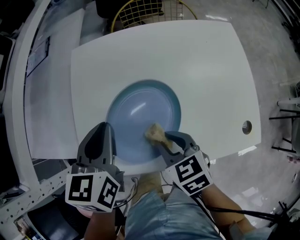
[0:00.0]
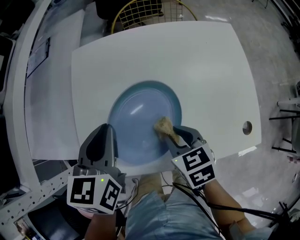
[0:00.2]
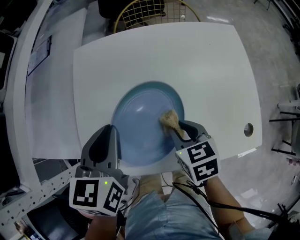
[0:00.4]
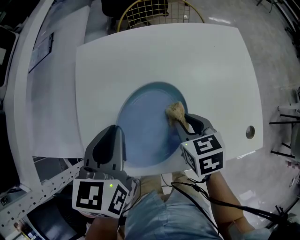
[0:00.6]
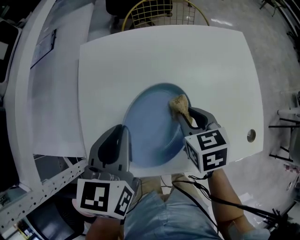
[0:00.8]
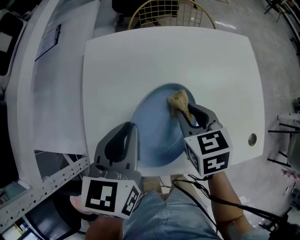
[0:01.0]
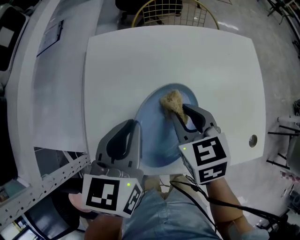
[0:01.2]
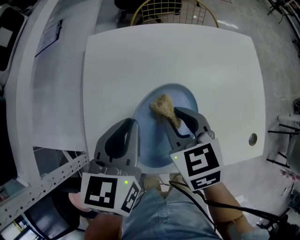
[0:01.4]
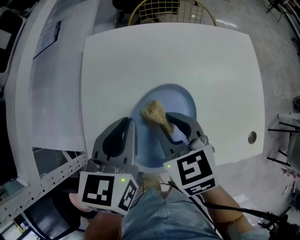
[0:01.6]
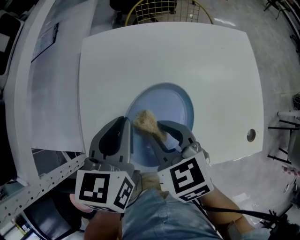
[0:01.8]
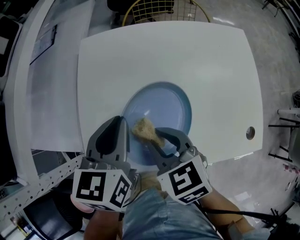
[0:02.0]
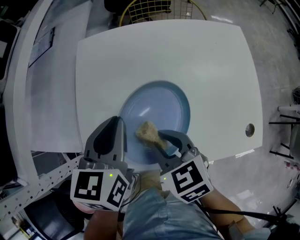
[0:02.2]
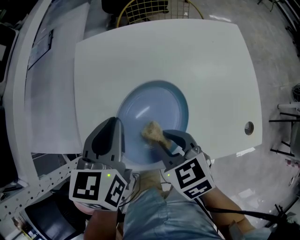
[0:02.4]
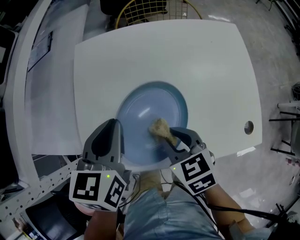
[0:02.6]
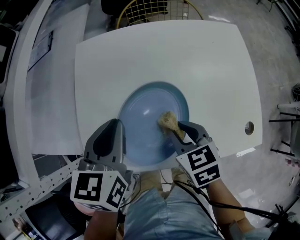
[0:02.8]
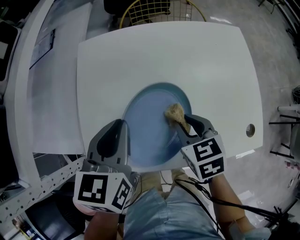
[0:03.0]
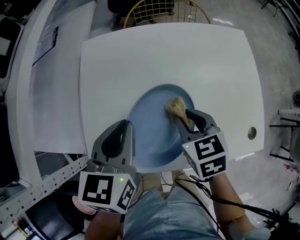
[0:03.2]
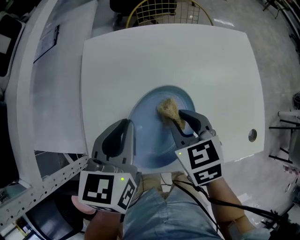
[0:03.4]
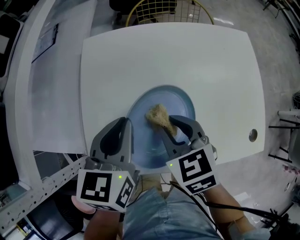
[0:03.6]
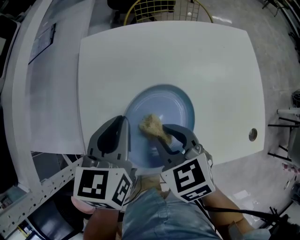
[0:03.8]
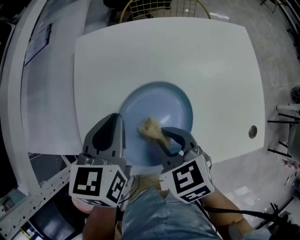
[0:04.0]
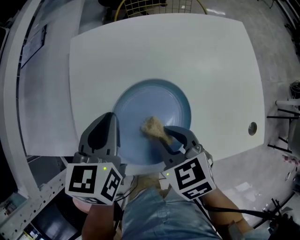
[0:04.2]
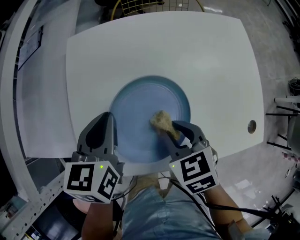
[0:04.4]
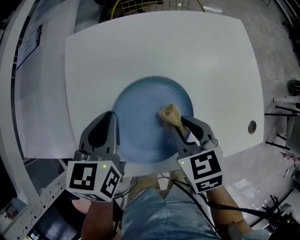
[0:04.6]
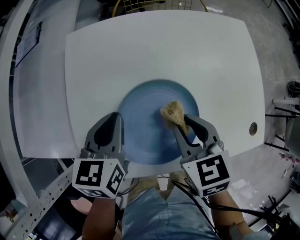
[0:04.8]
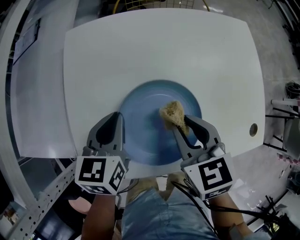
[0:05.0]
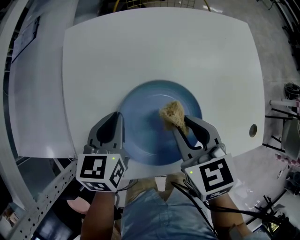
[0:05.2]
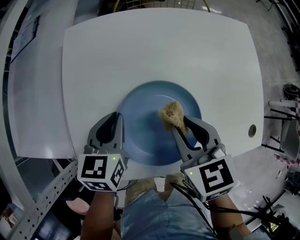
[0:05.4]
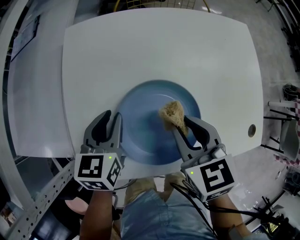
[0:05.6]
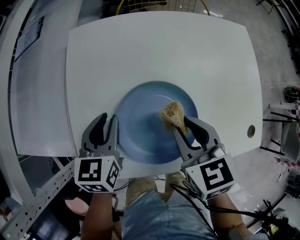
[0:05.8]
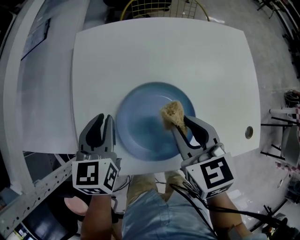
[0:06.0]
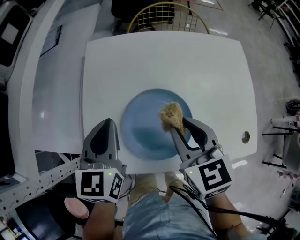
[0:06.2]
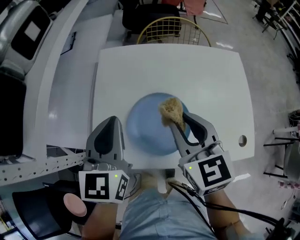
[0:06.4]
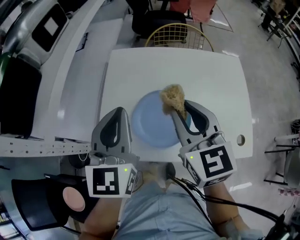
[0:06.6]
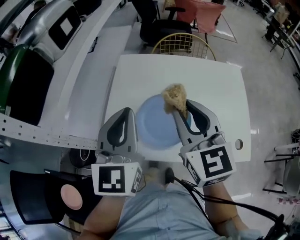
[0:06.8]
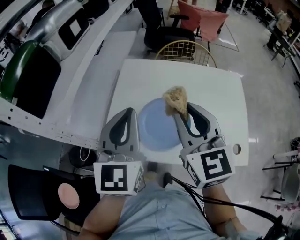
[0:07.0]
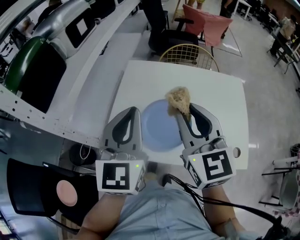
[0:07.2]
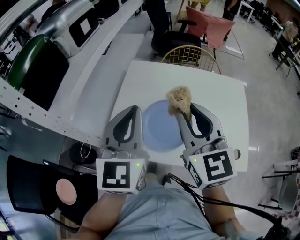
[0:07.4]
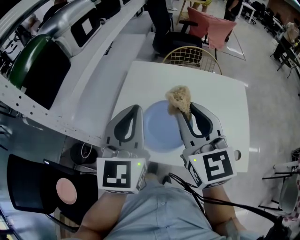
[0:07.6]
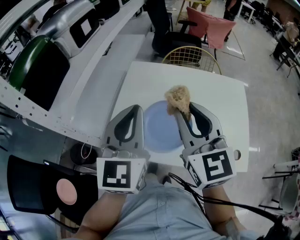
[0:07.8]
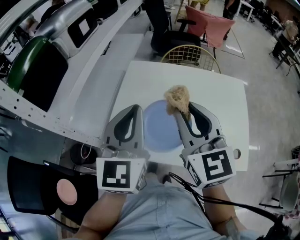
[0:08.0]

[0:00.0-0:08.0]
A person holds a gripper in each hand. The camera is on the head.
0:00.0 to 0:01.6: The right gripper travels forward and upward by some 10 cm.
0:01.6 to 0:03.2: The right gripper is displaced to the right by about 5 cm.
0:03.2 to 0:04.8: The left gripper travels downward by some 10 cm. Meanwhile the right gripper travels to the left and back again, some 10 cm each way.
0:04.8 to 0:06.4: The right gripper is displaced upward by roughly 15 cm, and changes its angle by roughly 20 degrees. The left gripper is displaced upward and backward by approximately 15 cm, and swivels roughly 30 degrees.
0:06.4 to 0:08.0: The grippers both shift upward and backward by roughly 15 cm. The right gripper rotates roughly 20 degrees.

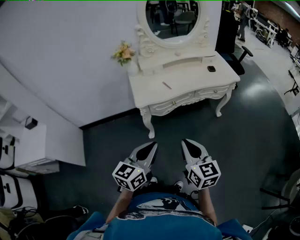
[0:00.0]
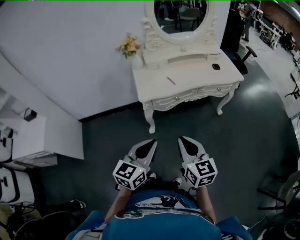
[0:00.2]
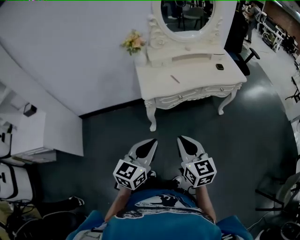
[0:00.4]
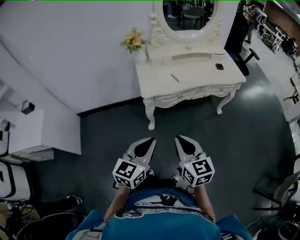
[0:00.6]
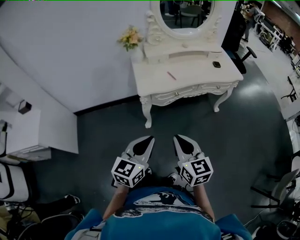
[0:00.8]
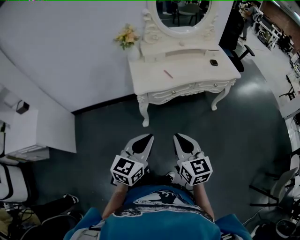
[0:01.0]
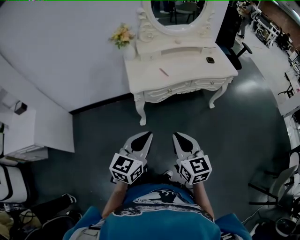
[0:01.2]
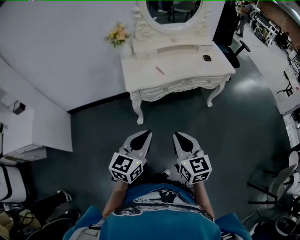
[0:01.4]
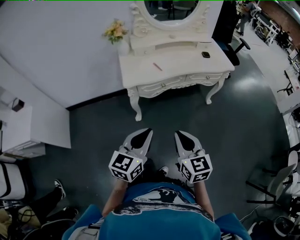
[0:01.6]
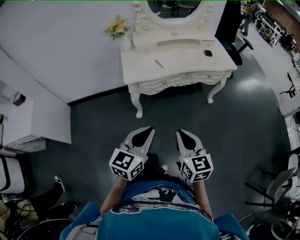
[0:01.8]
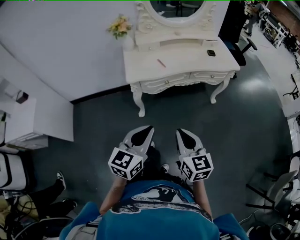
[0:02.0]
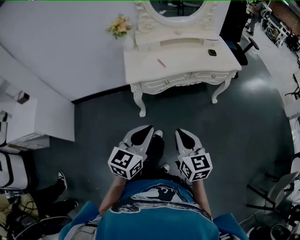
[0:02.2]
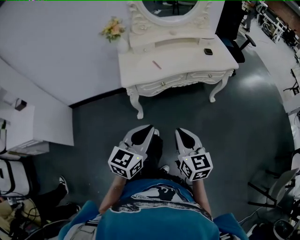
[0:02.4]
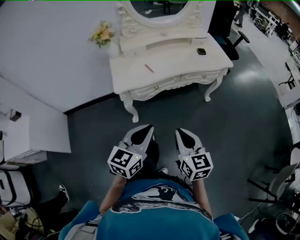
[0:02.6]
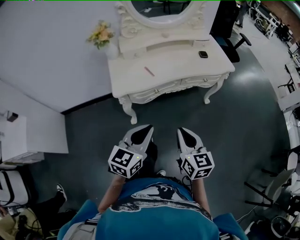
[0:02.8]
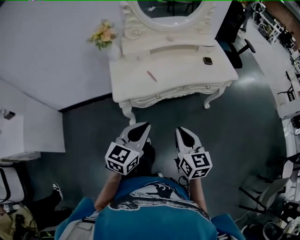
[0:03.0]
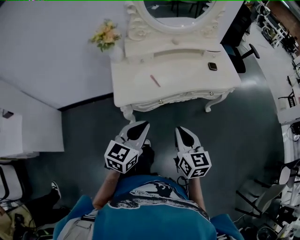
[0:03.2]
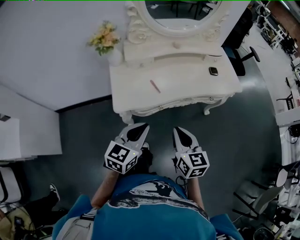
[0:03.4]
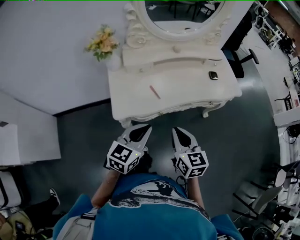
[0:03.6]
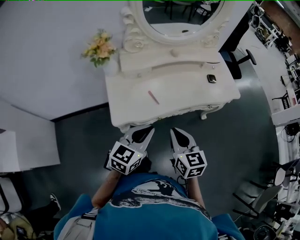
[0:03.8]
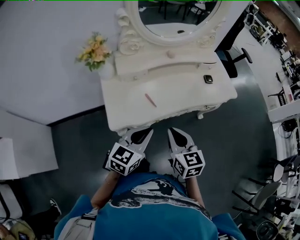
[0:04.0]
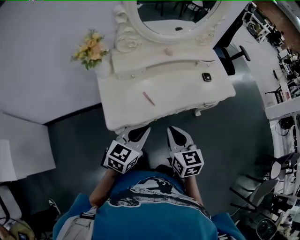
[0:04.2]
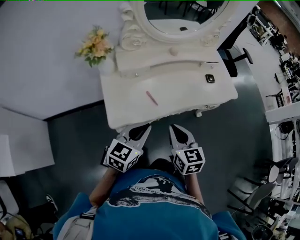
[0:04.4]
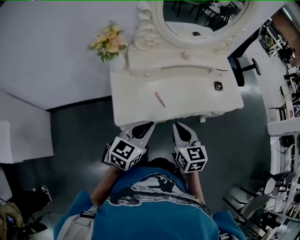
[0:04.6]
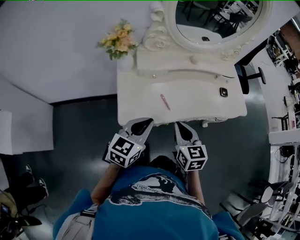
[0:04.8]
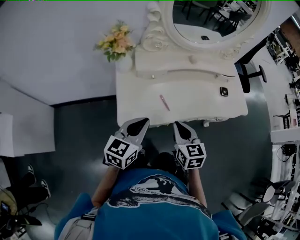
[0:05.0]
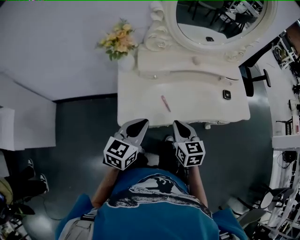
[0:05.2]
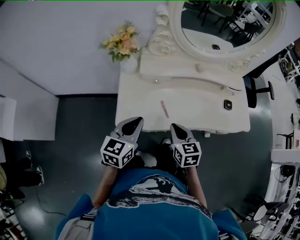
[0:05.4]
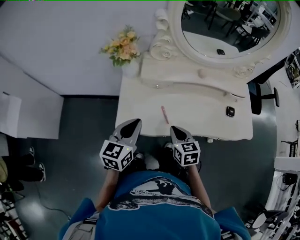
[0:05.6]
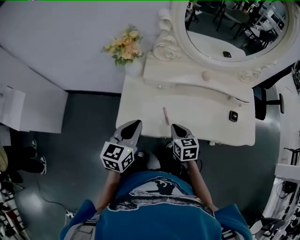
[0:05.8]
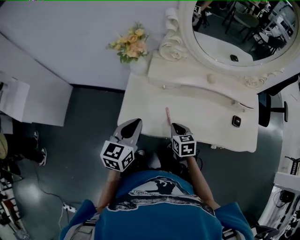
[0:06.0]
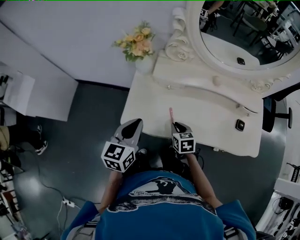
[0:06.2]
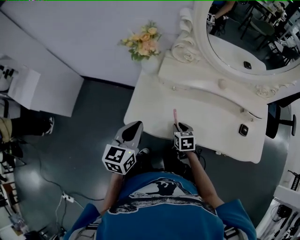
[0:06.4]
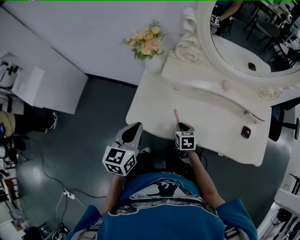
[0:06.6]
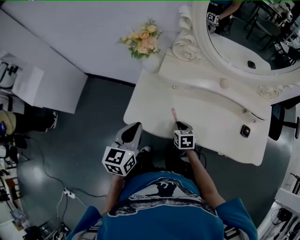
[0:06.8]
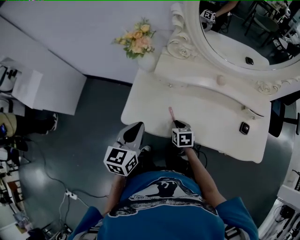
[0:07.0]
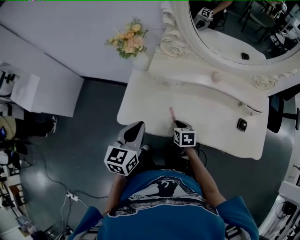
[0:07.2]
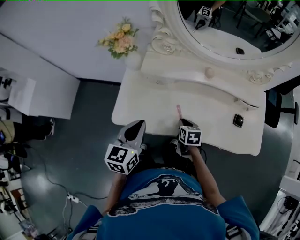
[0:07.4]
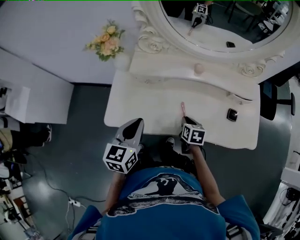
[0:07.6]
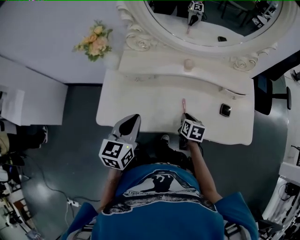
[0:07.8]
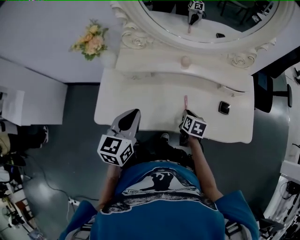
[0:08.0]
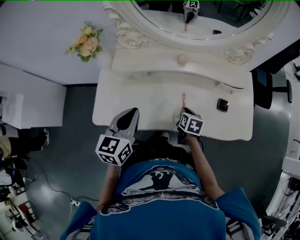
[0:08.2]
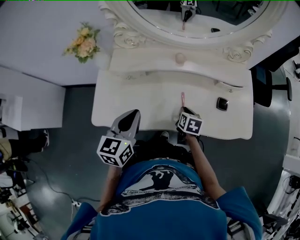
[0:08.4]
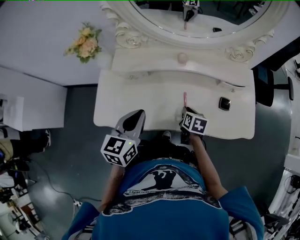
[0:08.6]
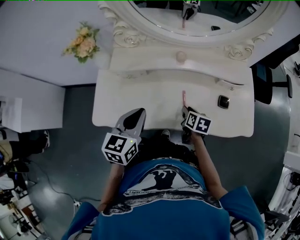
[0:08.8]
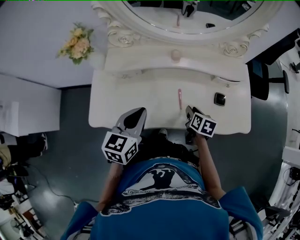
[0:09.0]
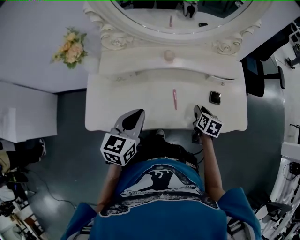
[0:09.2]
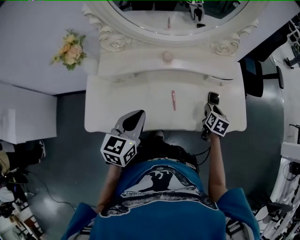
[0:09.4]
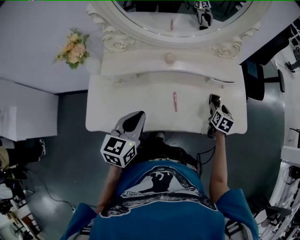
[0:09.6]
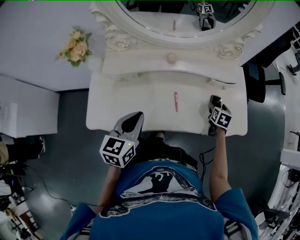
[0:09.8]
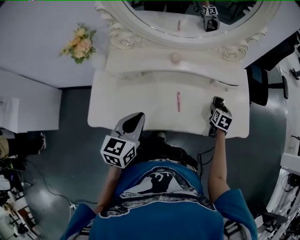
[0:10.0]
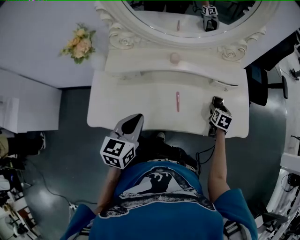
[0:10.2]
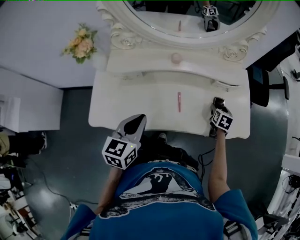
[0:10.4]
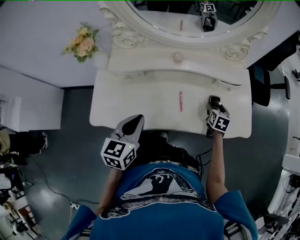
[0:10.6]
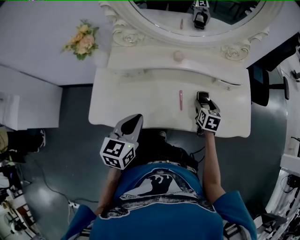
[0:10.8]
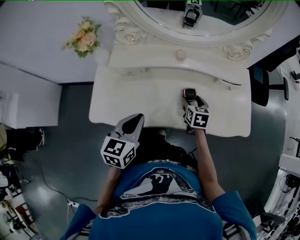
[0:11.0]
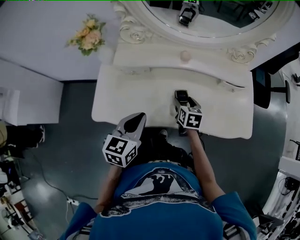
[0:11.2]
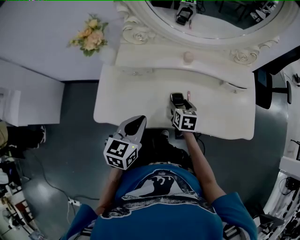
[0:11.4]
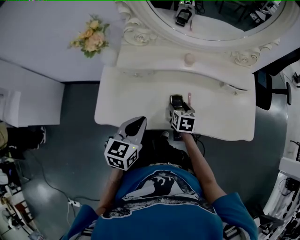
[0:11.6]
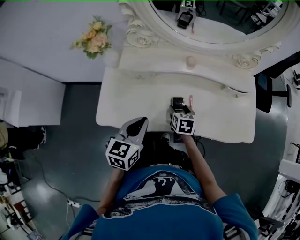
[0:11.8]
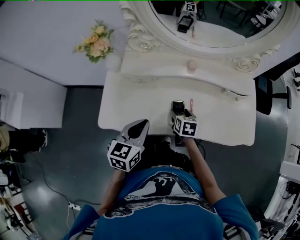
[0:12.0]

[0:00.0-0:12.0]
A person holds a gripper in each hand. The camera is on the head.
0:00.0 to 0:01.6: The right gripper moves roughly 10 cm to the left and comes back, while the left gripper goes to the left and returns, some 5 cm each way.
0:01.6 to 0:03.0: Both grippers move forward, roughly 15 cm.
0:03.0 to 0:04.4: The right gripper goes about 20 cm forward and to the left, while the left gripper heads forward, covering approximately 15 cm.
0:04.4 to 0:06.0: The right gripper changes place by approximately 20 cm, and turns by about 30 degrees; the left gripper changes place by approximately 10 cm, and changes its angle by roughly 40 degrees.
0:06.0 to 0:07.6: The right gripper moves to the right, approximately 15 cm. Meanwhile the left gripper moves to the right, some 10 cm.
0:07.6 to 0:09.0: Both grippers move to the right, some 10 cm.
0:09.0 to 0:10.4: The right gripper shifts approximately 20 cm to the right and forward, changes its angle by about 20 degrees, and opens up.
0:10.4 to 0:12.0: The left gripper moves to the left, approximately 5 cm; the right gripper goes some 30 cm to the left, and rotates roughly 20 degrees.

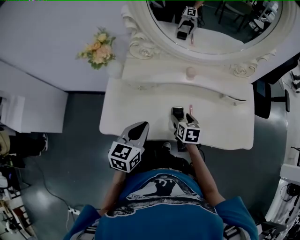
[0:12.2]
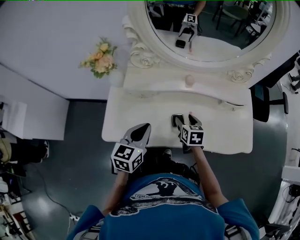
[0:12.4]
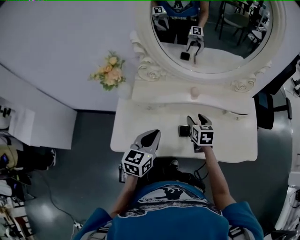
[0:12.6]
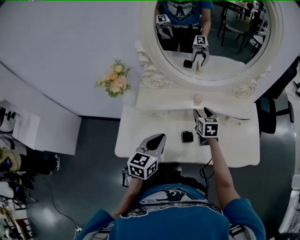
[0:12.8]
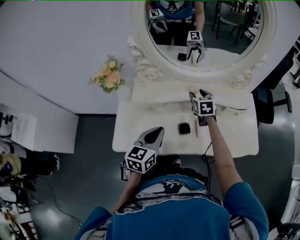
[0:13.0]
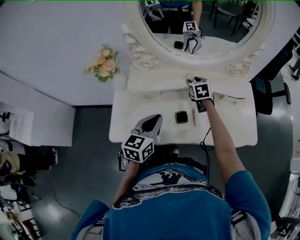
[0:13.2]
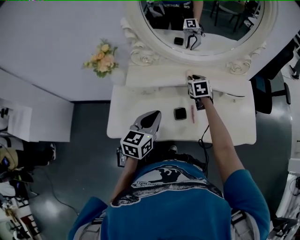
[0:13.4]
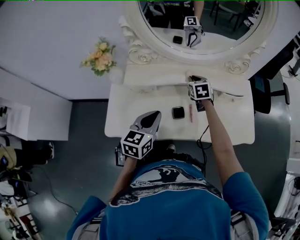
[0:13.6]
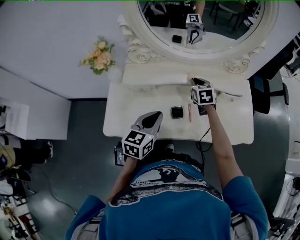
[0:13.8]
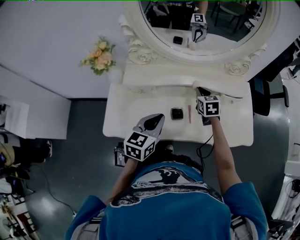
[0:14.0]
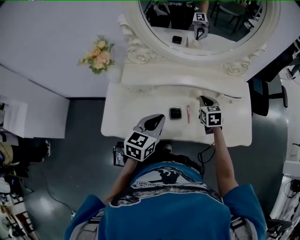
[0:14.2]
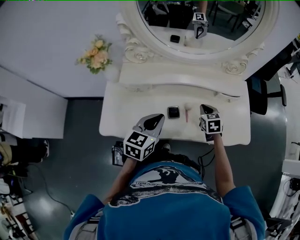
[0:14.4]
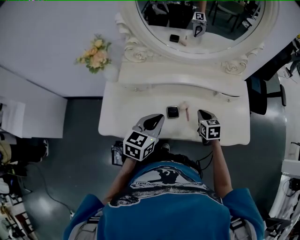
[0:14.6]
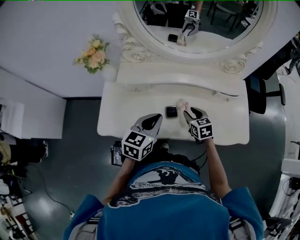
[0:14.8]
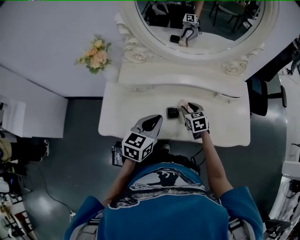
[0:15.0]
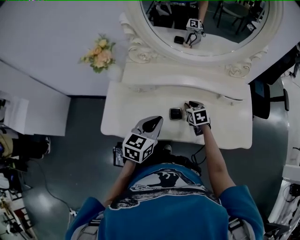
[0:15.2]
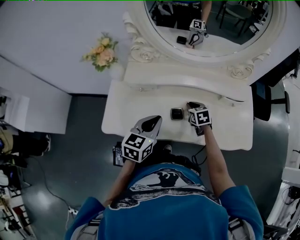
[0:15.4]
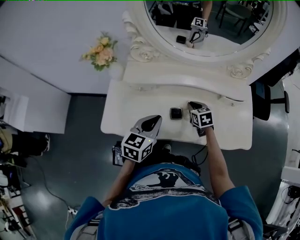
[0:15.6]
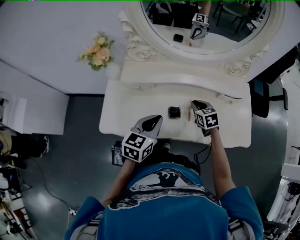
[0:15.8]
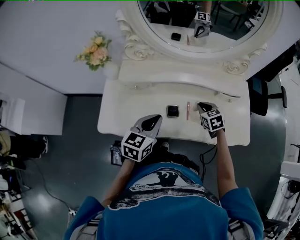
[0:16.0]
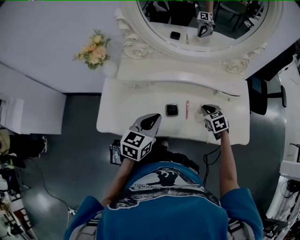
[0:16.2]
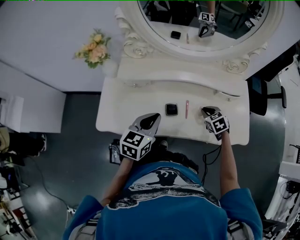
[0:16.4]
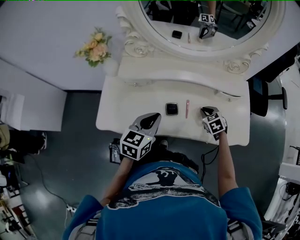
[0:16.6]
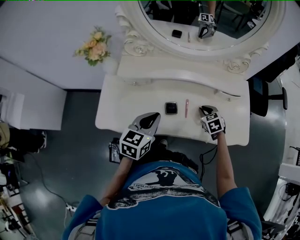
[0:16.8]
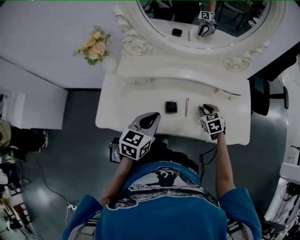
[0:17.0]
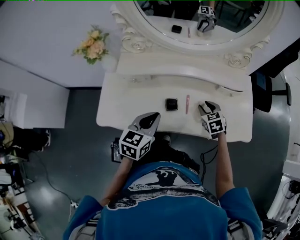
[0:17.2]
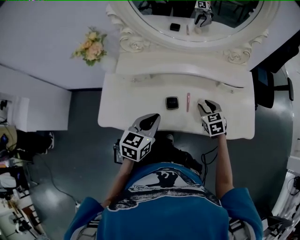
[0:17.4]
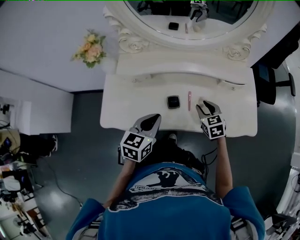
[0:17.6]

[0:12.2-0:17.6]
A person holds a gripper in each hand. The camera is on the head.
0:12.2 to 0:13.6: The right gripper travels forward and upward by some 20 cm, swivels approximately 20 degrees, and closes its fingers; the left gripper changes place by about 5 cm.
0:13.6 to 0:15.0: The right gripper goes about 15 cm backward and downward, and opens.
0:15.0 to 0:16.2: The right gripper heads to the right, covering some 10 cm, and closes its fingers.
0:16.2 to 0:17.6: The right gripper changes place by approximately 5 cm, and opens its fingers.
